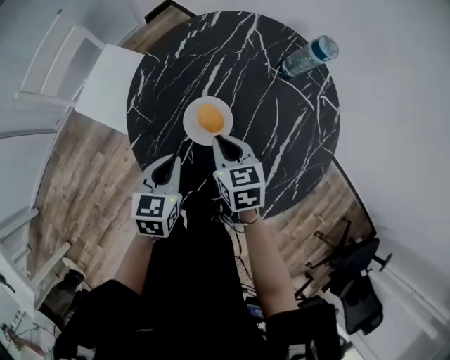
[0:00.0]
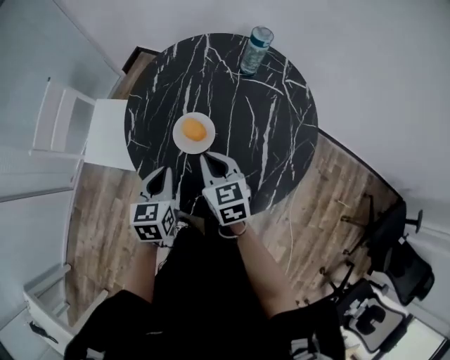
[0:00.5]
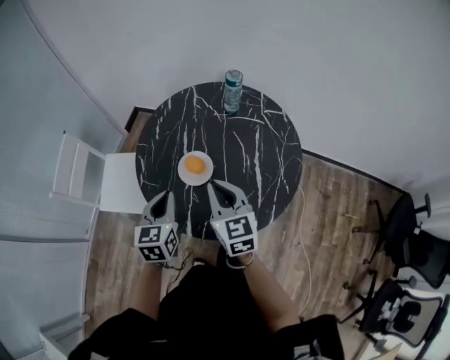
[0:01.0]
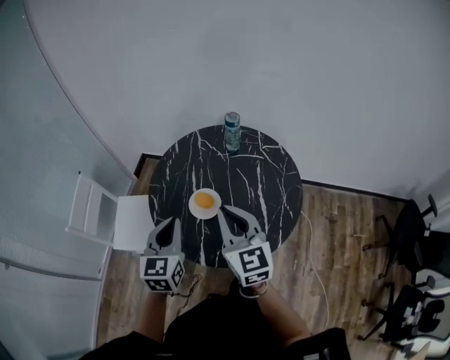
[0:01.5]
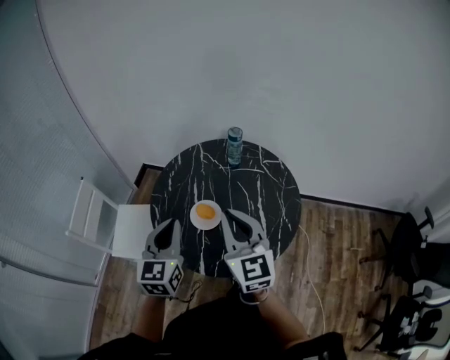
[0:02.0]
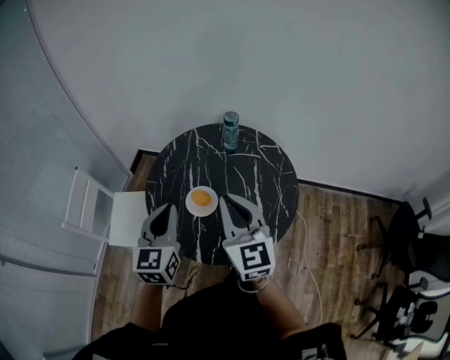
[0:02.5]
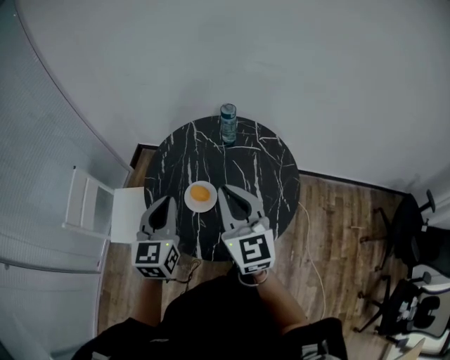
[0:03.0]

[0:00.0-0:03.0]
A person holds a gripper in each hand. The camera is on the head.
0:00.0 to 0:01.5: The left gripper moves upward, about 25 cm, and turns by some 30 degrees. The right gripper goes approximately 30 cm upward and backward, and angles its fingers upward, by approximately 40 degrees.
0:01.5 to 0:03.0: The left gripper moves roughly 5 cm, while the right gripper moves about 5 cm.

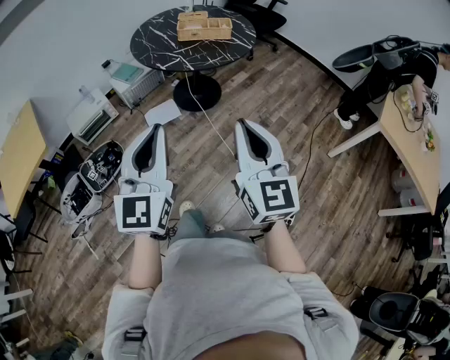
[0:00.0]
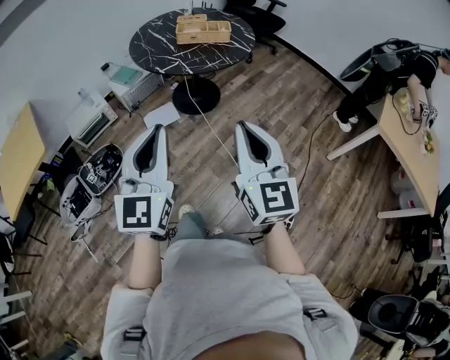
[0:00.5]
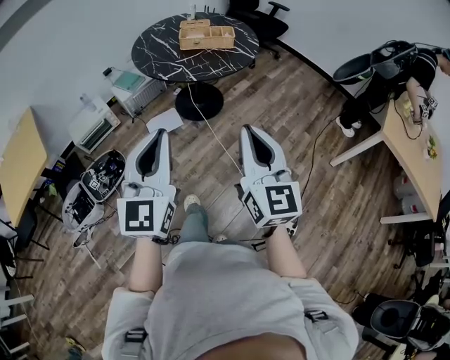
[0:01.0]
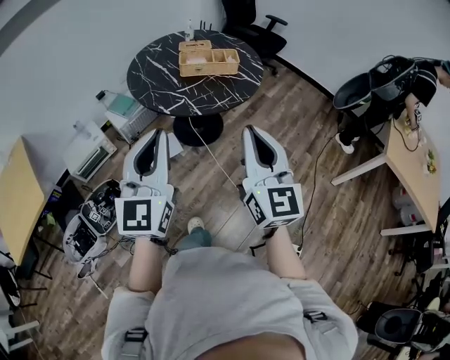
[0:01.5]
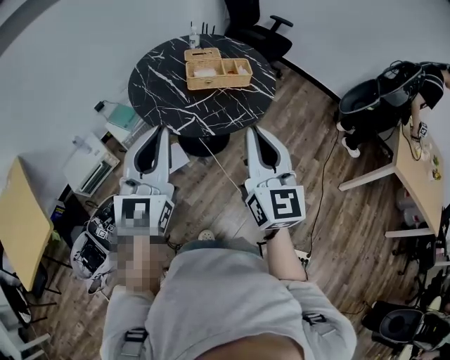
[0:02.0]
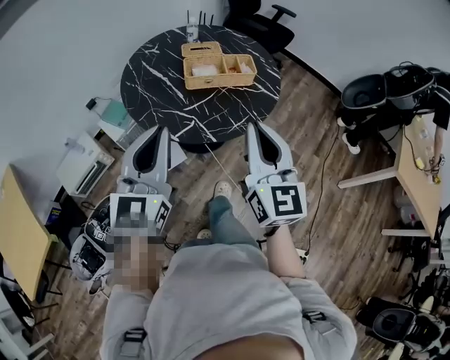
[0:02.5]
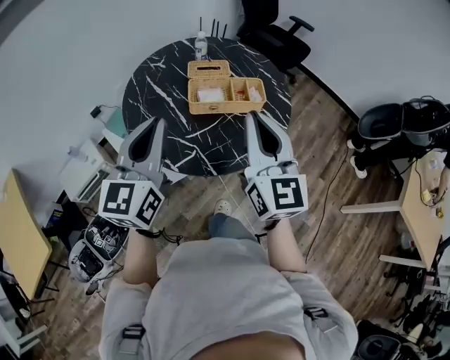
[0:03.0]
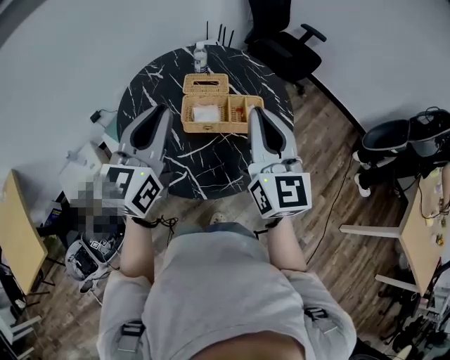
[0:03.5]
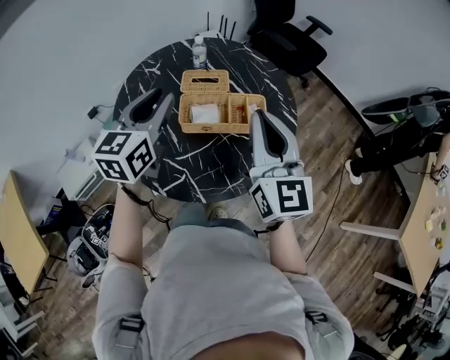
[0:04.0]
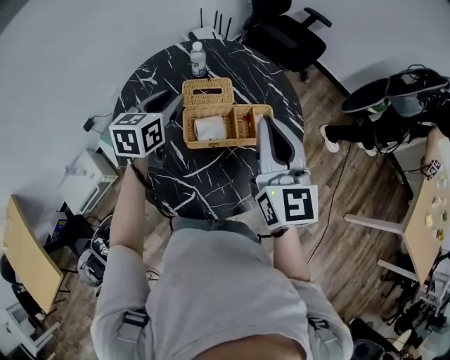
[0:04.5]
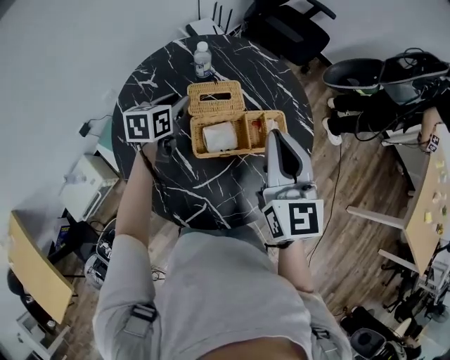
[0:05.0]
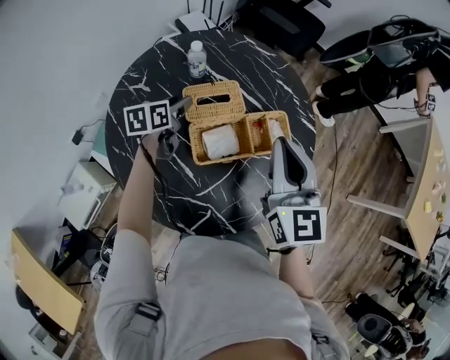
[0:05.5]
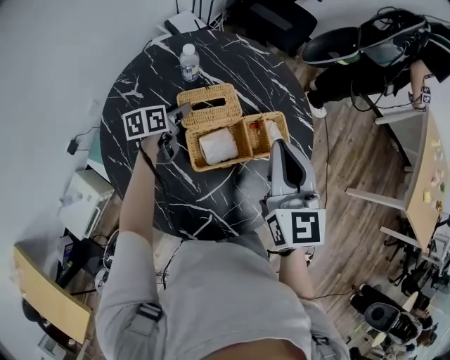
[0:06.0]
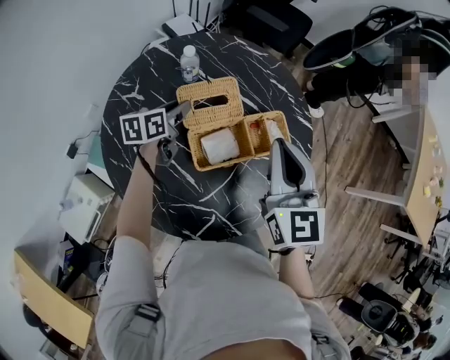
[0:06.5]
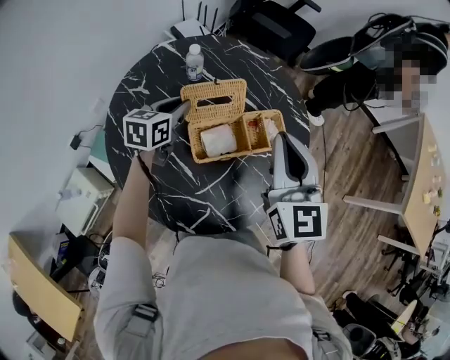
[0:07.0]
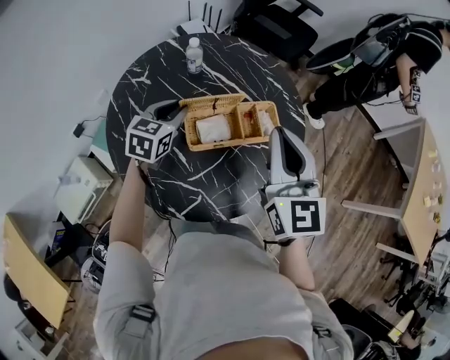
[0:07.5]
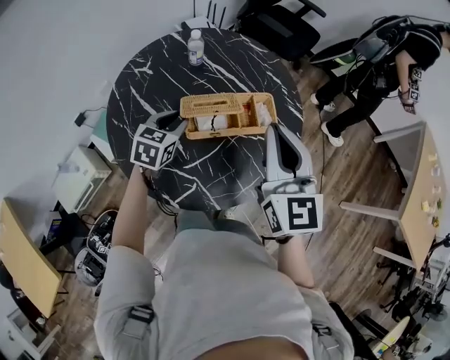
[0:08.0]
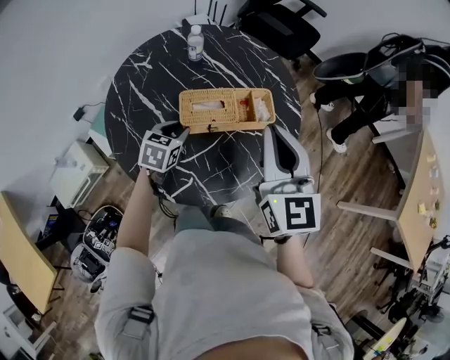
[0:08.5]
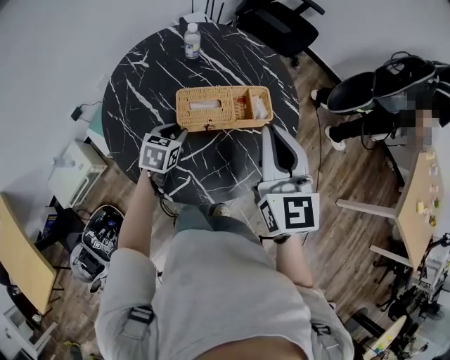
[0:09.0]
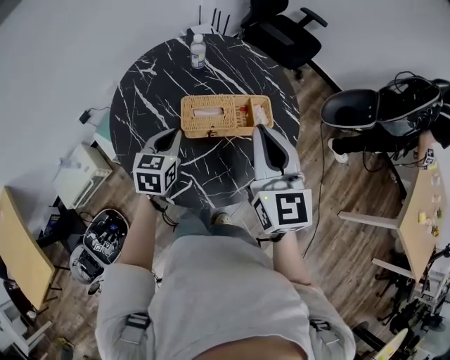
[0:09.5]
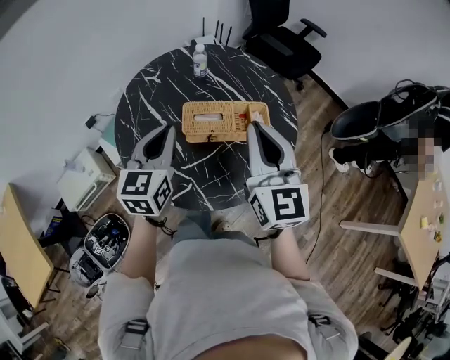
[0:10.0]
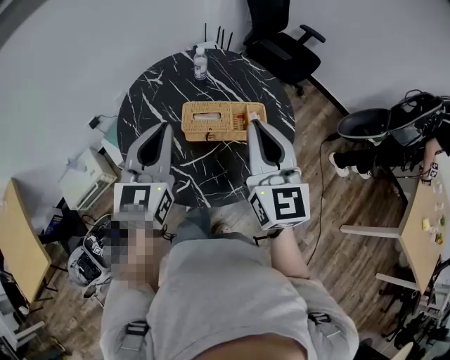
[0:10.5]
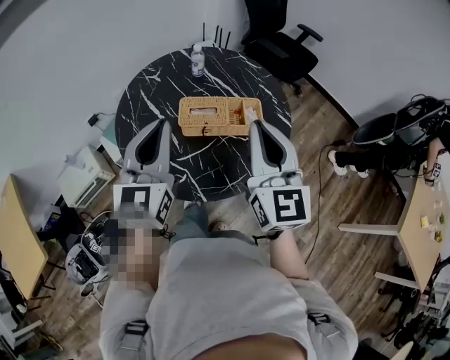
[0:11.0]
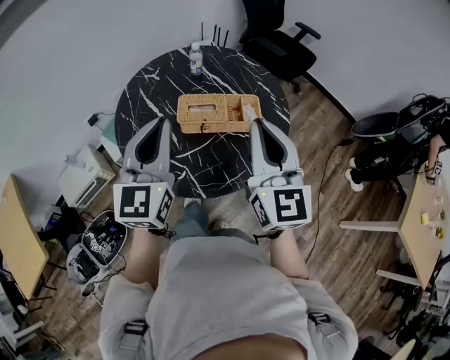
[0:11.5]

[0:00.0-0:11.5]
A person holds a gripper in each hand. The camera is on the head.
0:00.0 to 0:02.0: The grippers both shift forward by roughly 35 cm.
0:02.0 to 0:04.0: Both grippers move forward, approximately 40 cm. The left gripper turns by approximately 30 degrees, and opens.
0:04.0 to 0:06.0: The right gripper shifts approximately 15 cm forward, downward and to the left, and changes its angle by roughly 30 degrees. The left gripper goes approximately 35 cm downward and forward, changes its angle by about 50 degrees, and opens up.
0:06.0 to 0:07.5: The right gripper heads backward and upward, covering approximately 10 cm. Meanwhile the left gripper is displaced upward and backward by about 15 cm, swivels about 40 degrees, and closes.
0:07.5 to 0:09.5: The right gripper moves backward, about 5 cm. Meanwhile the left gripper goes some 15 cm backward.
0:09.5 to 0:11.5: The left gripper heads upward and backward, covering roughly 25 cm, and tips its fingers upward by some 30 degrees; the right gripper travels backward and upward by some 10 cm.

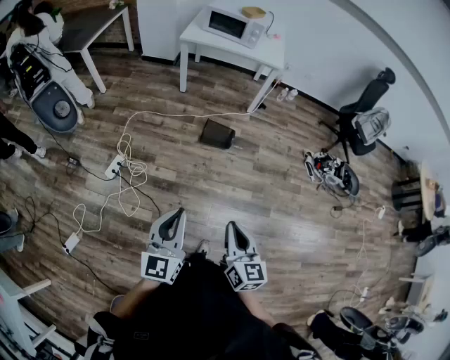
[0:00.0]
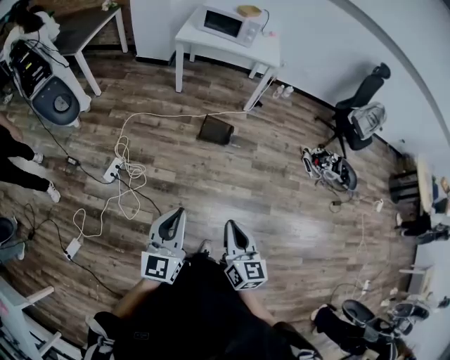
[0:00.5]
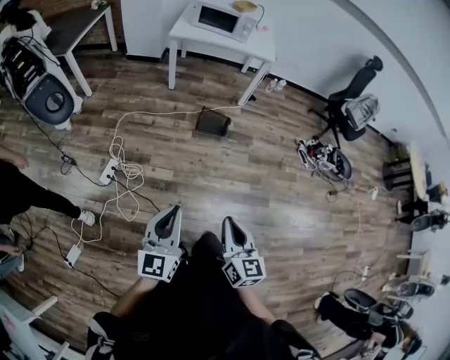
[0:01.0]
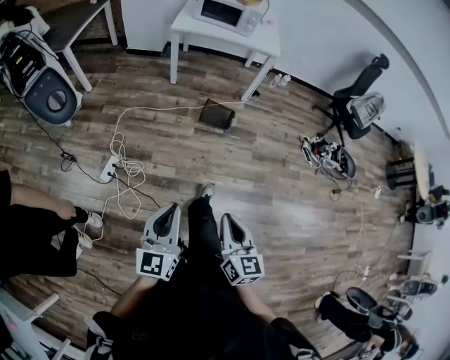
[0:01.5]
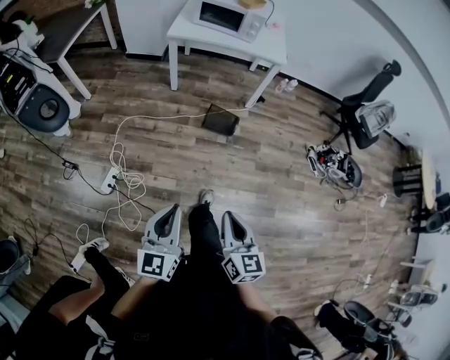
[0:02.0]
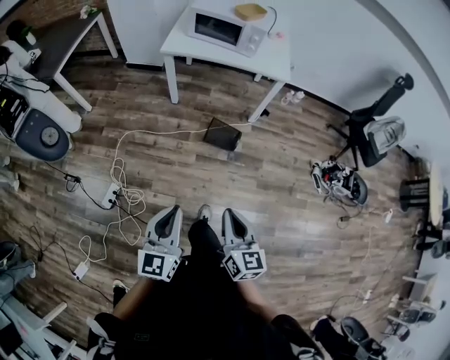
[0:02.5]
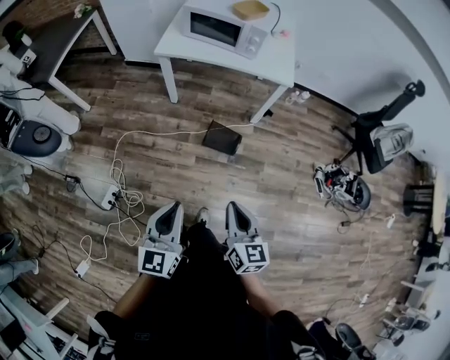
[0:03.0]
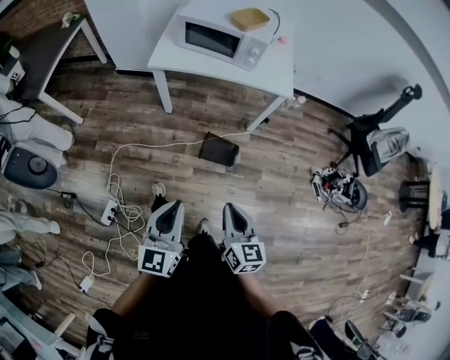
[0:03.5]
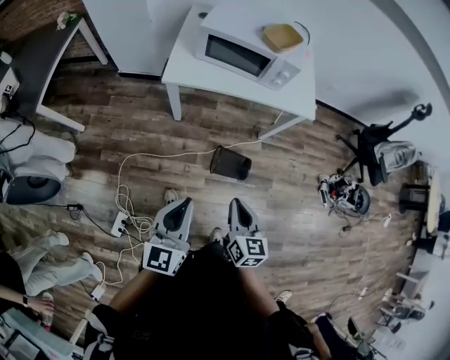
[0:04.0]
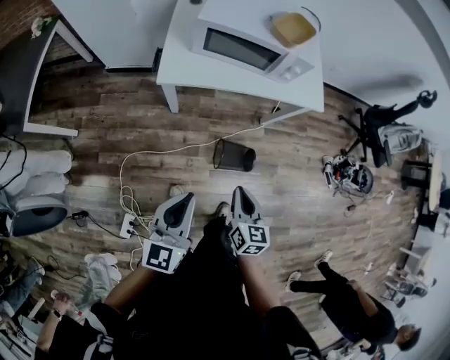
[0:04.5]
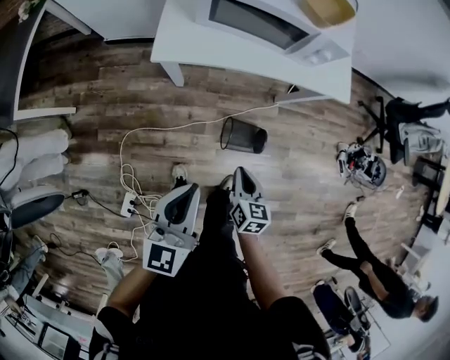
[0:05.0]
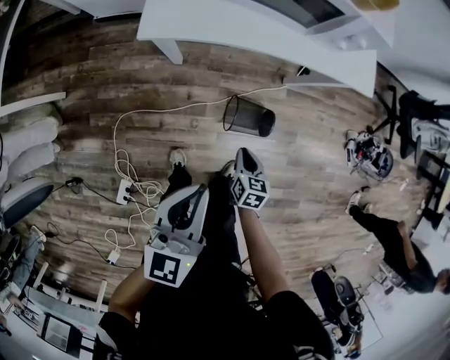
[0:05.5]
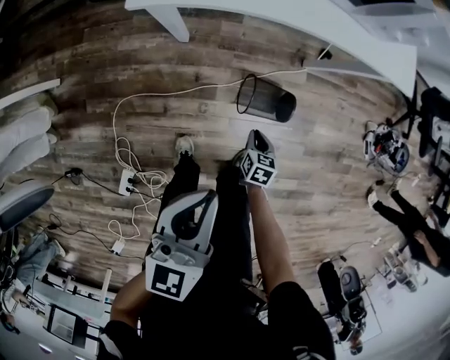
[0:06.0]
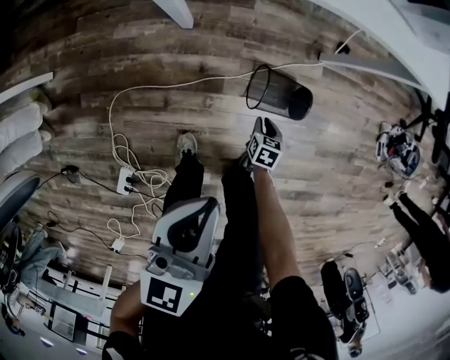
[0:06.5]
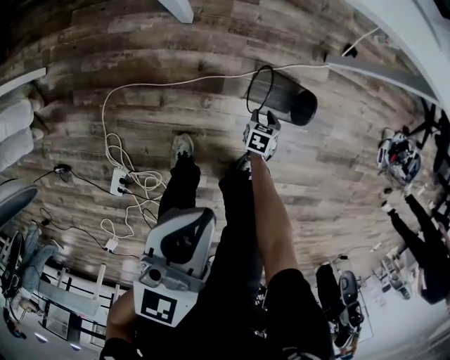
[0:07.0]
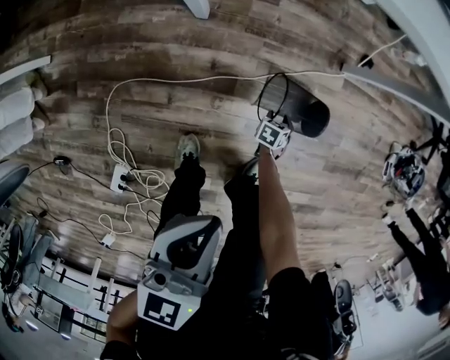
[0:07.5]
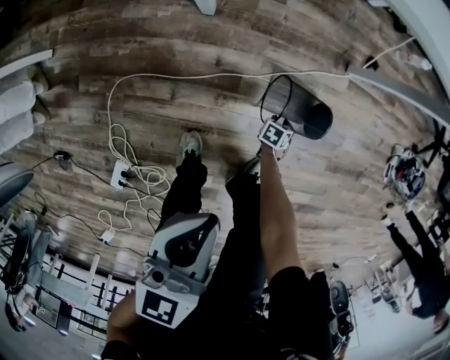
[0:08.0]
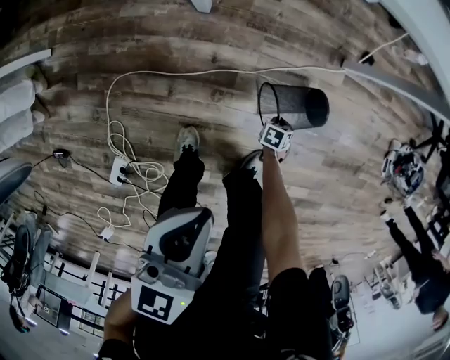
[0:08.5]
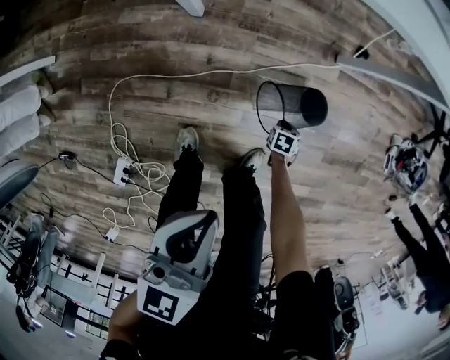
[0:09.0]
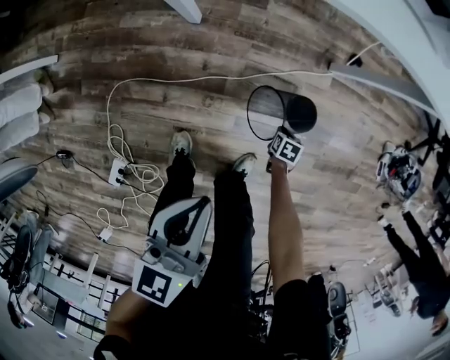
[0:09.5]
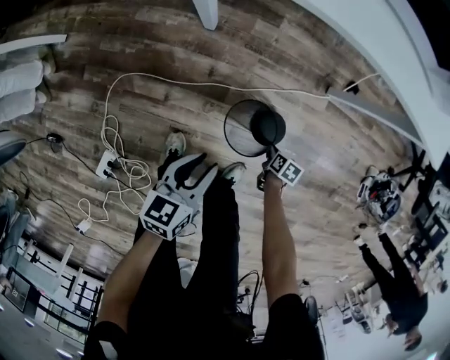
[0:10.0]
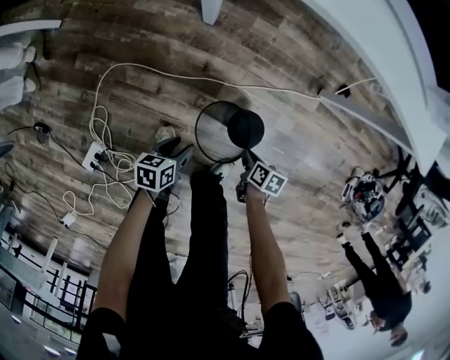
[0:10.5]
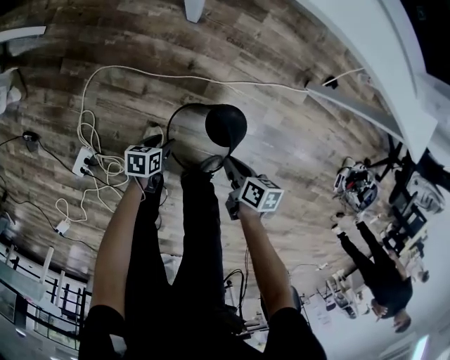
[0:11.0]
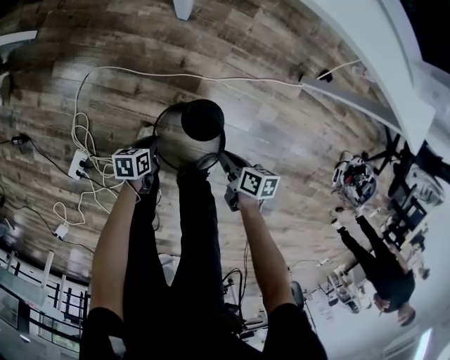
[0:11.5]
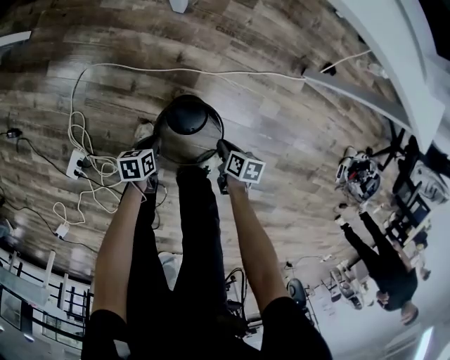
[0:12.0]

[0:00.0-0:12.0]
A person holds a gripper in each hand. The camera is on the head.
0:00.0 to 0:02.0: The two grippers go some 15 cm forward.
0:02.0 to 0:04.0: Both grippers are carried forward, approximately 50 cm.
0:04.0 to 0:06.0: The left gripper is displaced downward and forward by roughly 25 cm. Meanwhile the right gripper goes about 50 cm downward, and tilts its fingers roughly 30 degrees downward.
0:06.0 to 0:08.0: The left gripper travels downward by roughly 15 cm, while the right gripper shifts roughly 30 cm downward, rotates about 30 degrees, and opens its fingers.
0:08.0 to 0:10.0: The right gripper shifts roughly 10 cm upward, turns by approximately 30 degrees, and closes, while the left gripper goes about 15 cm downward, swivels roughly 20 degrees, and opens up.
0:10.0 to 0:12.0: The right gripper goes about 10 cm to the left, and goes upward and returns, some 15 cm each way. Meanwhile the left gripper goes some 25 cm downward, and turns by some 40 degrees.
